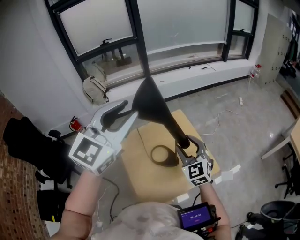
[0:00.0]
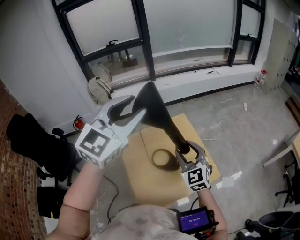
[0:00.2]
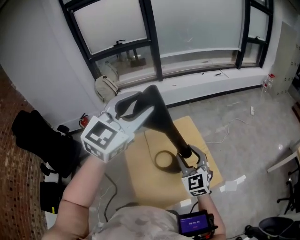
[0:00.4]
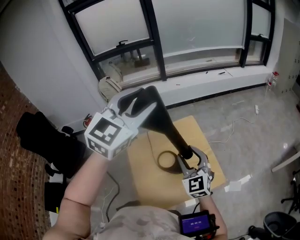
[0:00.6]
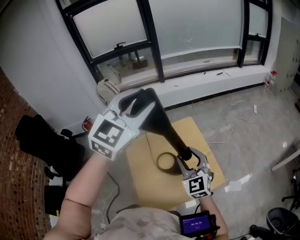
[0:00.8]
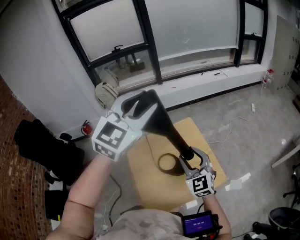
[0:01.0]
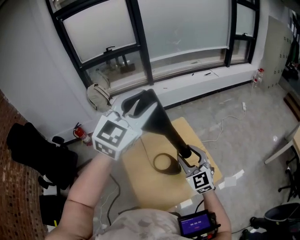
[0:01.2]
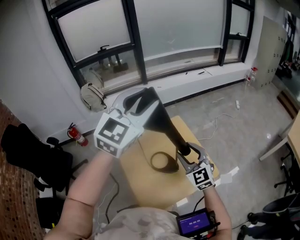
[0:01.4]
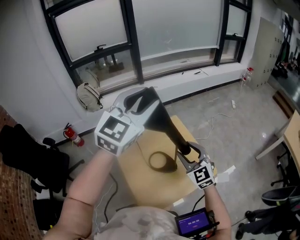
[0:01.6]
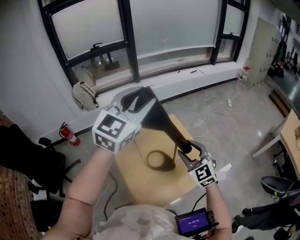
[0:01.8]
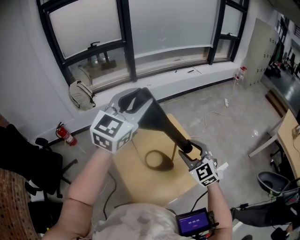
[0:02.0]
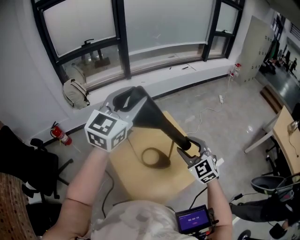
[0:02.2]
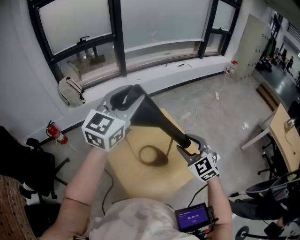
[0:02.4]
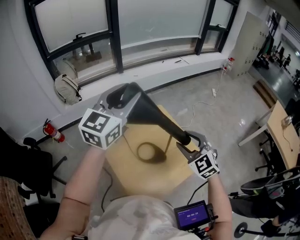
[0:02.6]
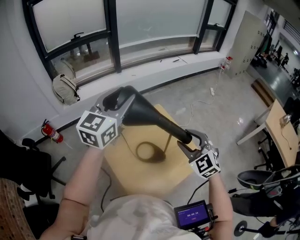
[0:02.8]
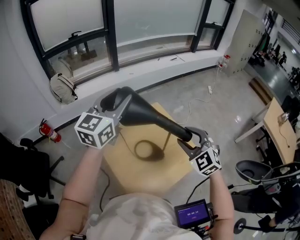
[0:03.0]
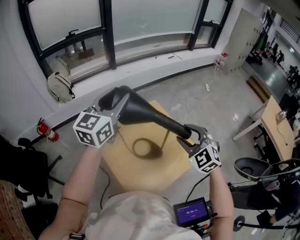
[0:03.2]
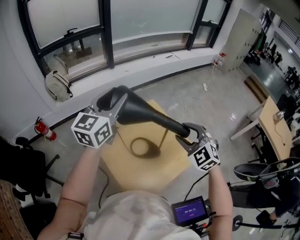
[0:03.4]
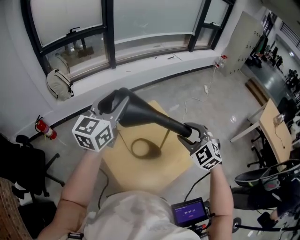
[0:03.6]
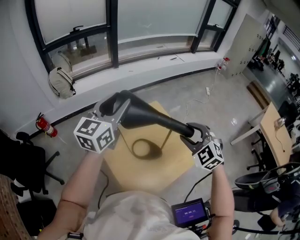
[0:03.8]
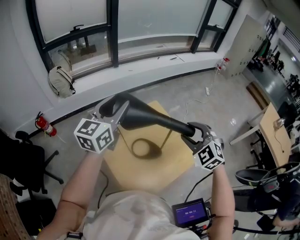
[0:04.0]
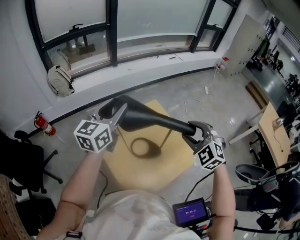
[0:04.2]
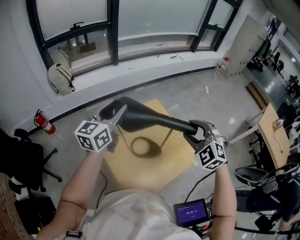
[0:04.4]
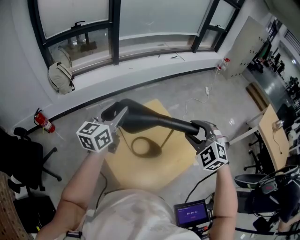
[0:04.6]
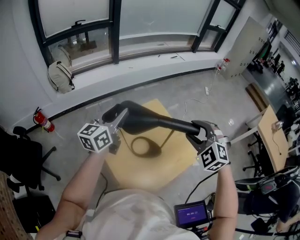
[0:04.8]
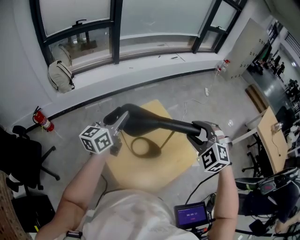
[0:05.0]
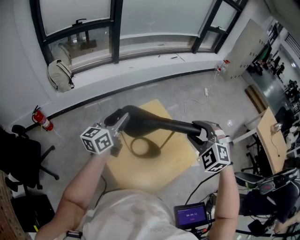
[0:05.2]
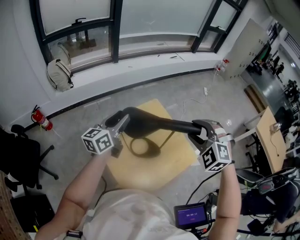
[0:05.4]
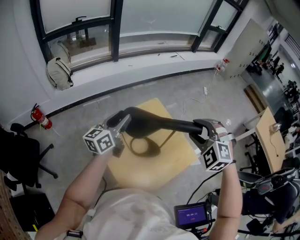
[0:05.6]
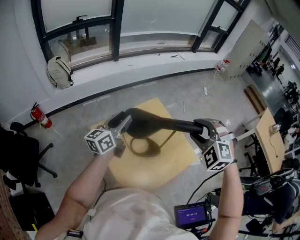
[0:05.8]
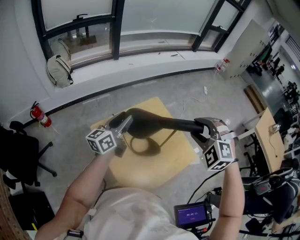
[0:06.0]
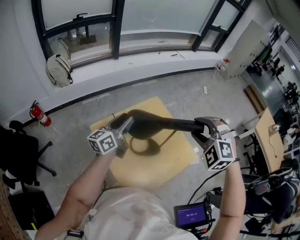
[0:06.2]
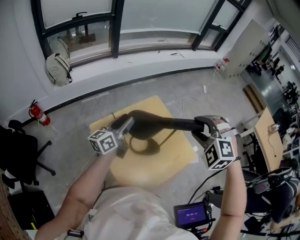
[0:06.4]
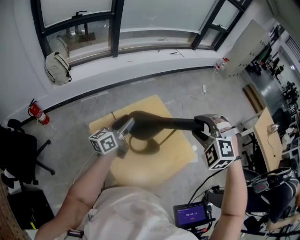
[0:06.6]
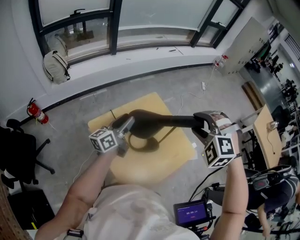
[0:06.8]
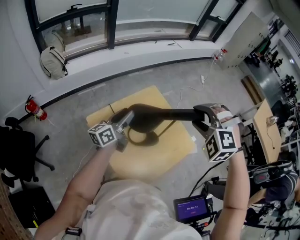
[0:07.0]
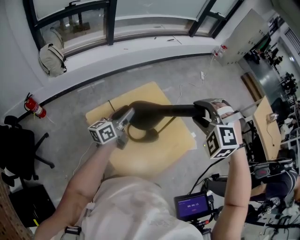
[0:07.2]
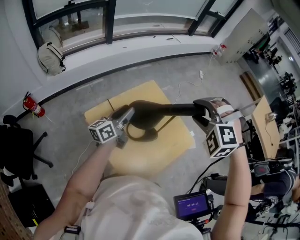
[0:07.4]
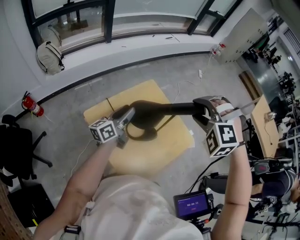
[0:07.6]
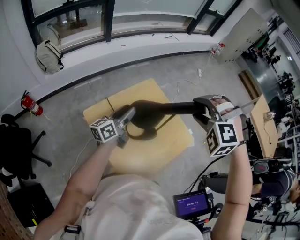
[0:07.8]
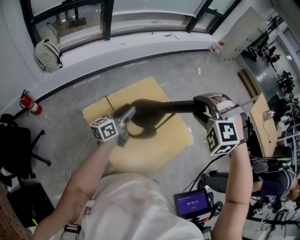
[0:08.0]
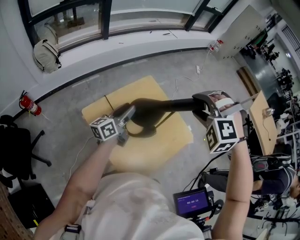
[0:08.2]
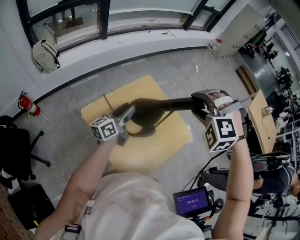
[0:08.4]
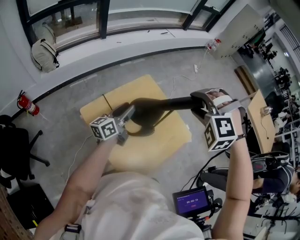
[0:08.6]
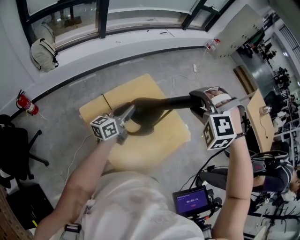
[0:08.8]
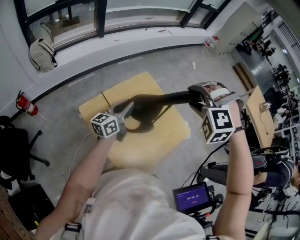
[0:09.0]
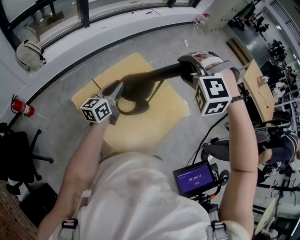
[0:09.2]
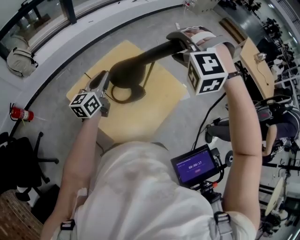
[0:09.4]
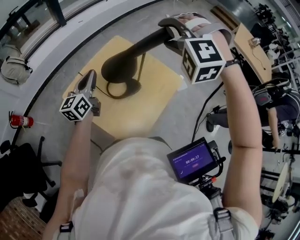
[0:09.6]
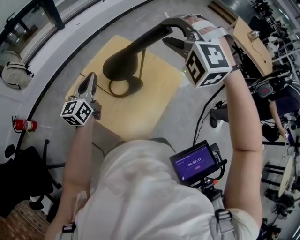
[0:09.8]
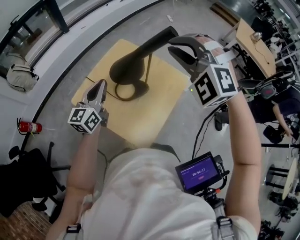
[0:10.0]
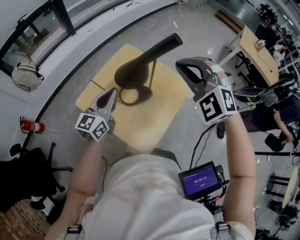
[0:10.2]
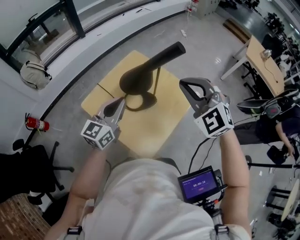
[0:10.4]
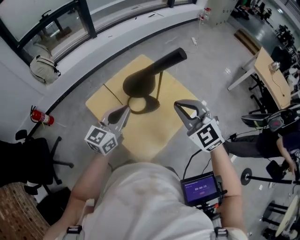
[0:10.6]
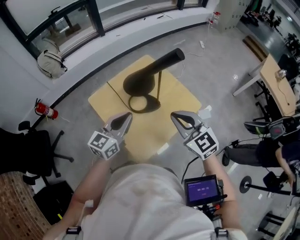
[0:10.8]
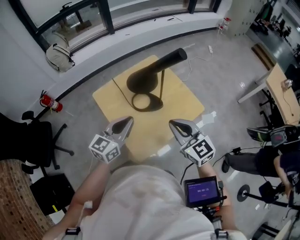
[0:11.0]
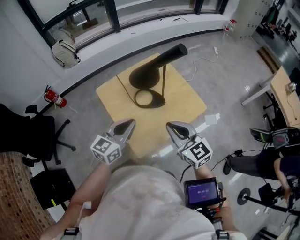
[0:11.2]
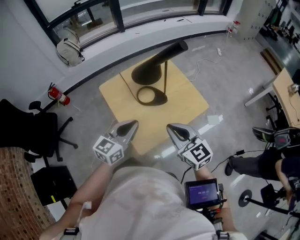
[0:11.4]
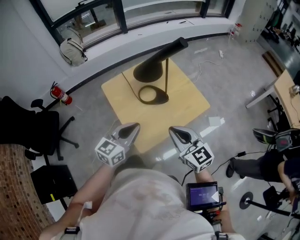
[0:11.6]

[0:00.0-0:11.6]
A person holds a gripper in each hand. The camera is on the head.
0:00.0 to 0:01.4: The left gripper travels forward by some 5 cm.
0:01.4 to 0:02.8: The left gripper travels to the left and downward by about 10 cm, and changes its angle by some 20 degrees.
0:02.8 to 0:04.4: The right gripper rotates roughly 20 degrees; the left gripper travels downward by roughly 10 cm.
0:04.4 to 0:05.8: The left gripper goes roughly 10 cm downward.
0:05.8 to 0:07.2: The left gripper shifts approximately 5 cm downward.
0:07.2 to 0:08.8: The grippers move only a little.
0:08.8 to 0:10.2: The left gripper goes approximately 10 cm backward and upward, swivels approximately 30 degrees, and closes its fingers, while the right gripper shifts about 10 cm backward, rotates roughly 40 degrees, and closes its fingers.
0:10.2 to 0:11.6: The right gripper moves backward and downward, about 25 cm, and rotates around the line of its fingers by approximately 60 degrees, clockwise from behind, while the left gripper shifts roughly 20 cm backward.

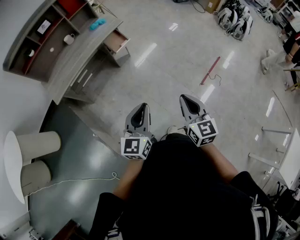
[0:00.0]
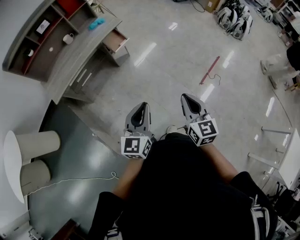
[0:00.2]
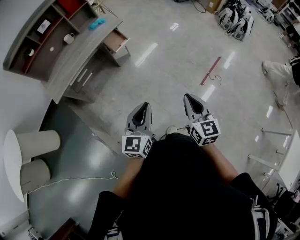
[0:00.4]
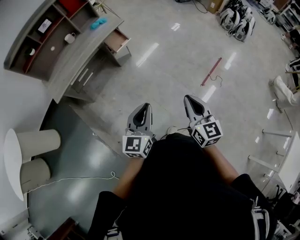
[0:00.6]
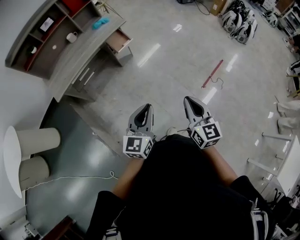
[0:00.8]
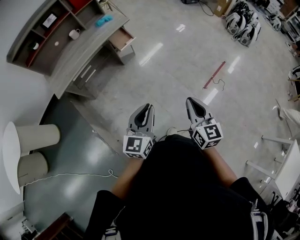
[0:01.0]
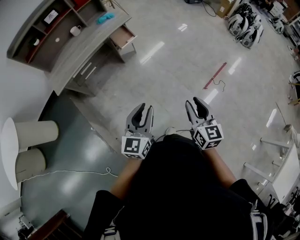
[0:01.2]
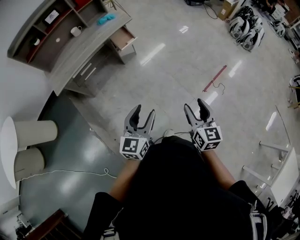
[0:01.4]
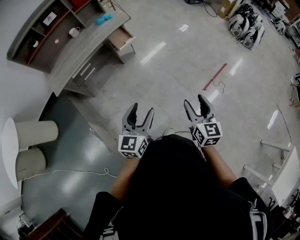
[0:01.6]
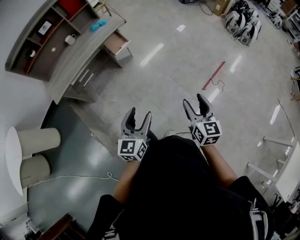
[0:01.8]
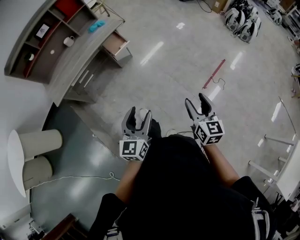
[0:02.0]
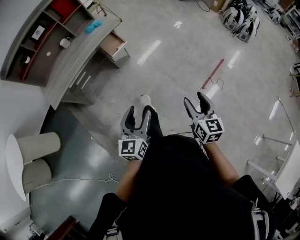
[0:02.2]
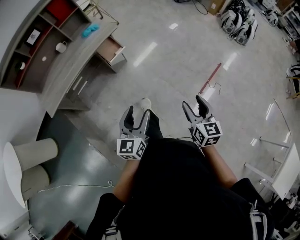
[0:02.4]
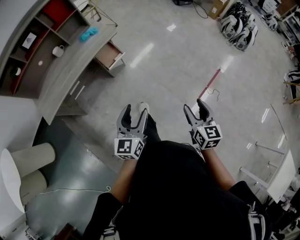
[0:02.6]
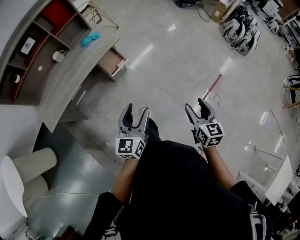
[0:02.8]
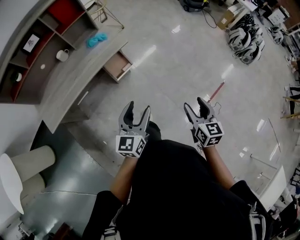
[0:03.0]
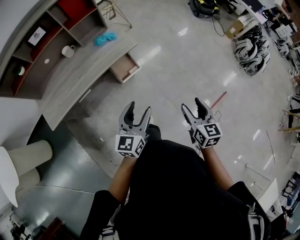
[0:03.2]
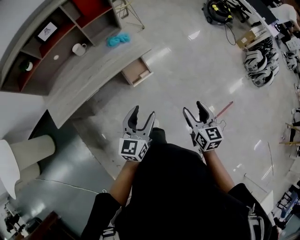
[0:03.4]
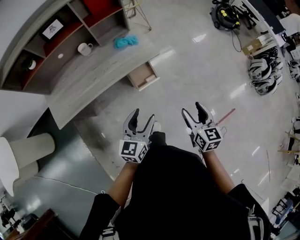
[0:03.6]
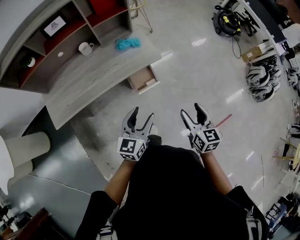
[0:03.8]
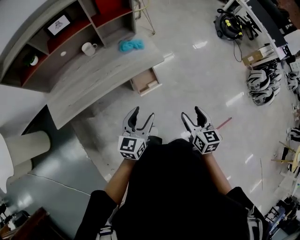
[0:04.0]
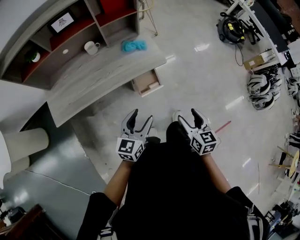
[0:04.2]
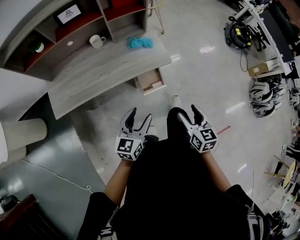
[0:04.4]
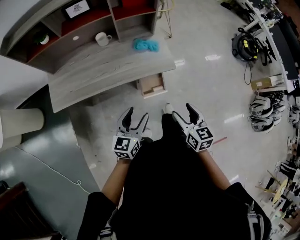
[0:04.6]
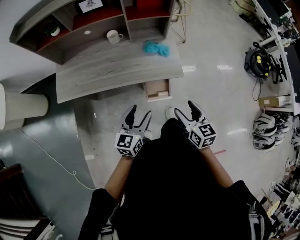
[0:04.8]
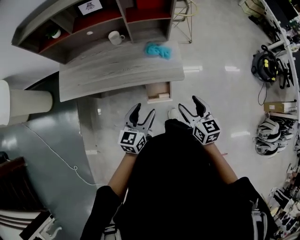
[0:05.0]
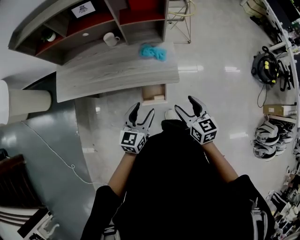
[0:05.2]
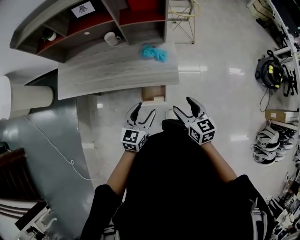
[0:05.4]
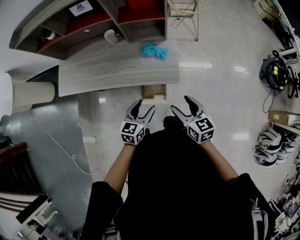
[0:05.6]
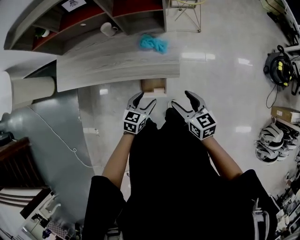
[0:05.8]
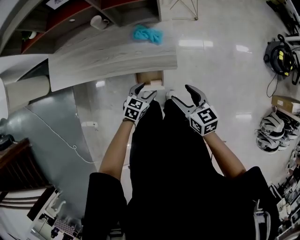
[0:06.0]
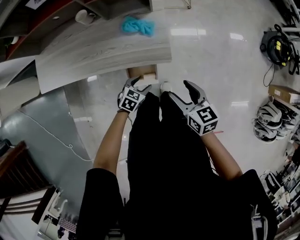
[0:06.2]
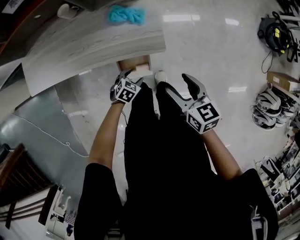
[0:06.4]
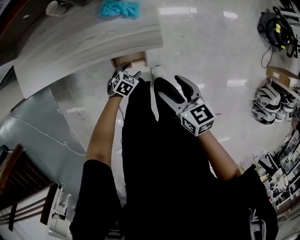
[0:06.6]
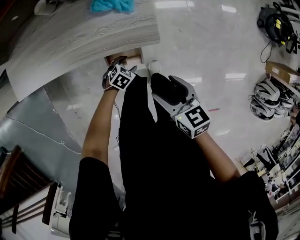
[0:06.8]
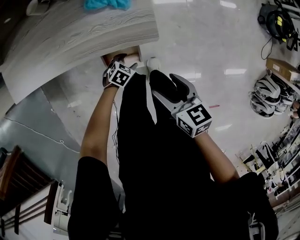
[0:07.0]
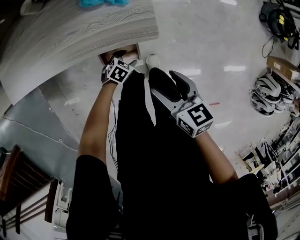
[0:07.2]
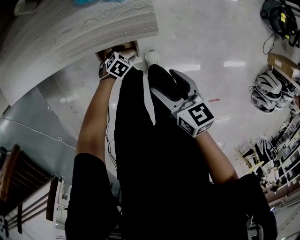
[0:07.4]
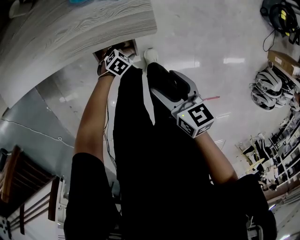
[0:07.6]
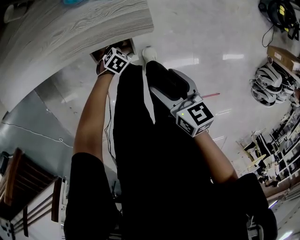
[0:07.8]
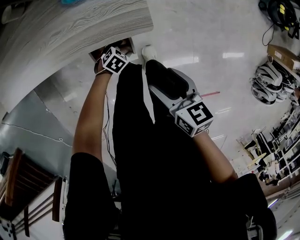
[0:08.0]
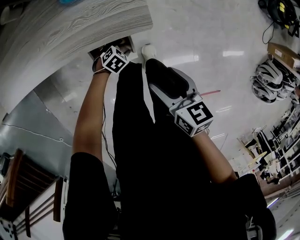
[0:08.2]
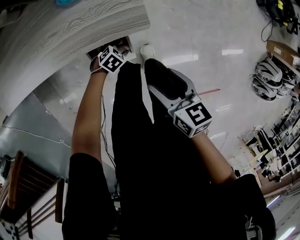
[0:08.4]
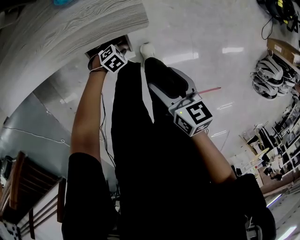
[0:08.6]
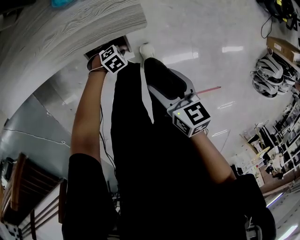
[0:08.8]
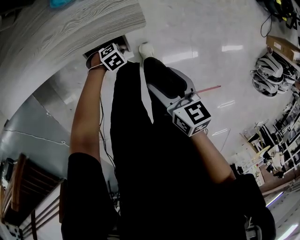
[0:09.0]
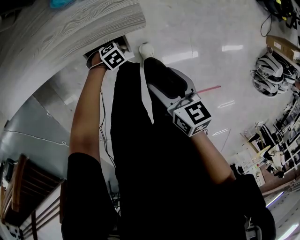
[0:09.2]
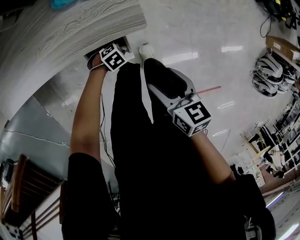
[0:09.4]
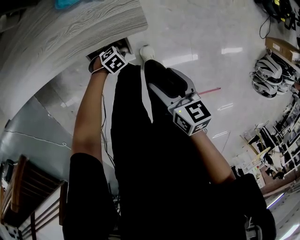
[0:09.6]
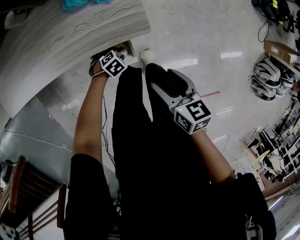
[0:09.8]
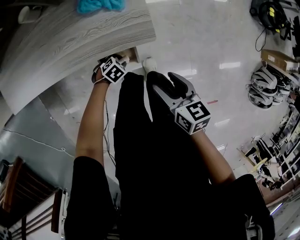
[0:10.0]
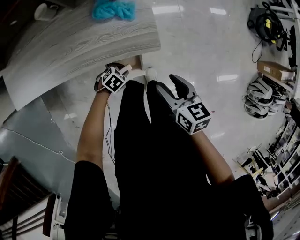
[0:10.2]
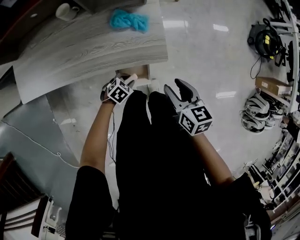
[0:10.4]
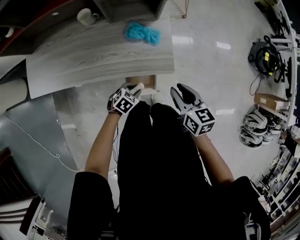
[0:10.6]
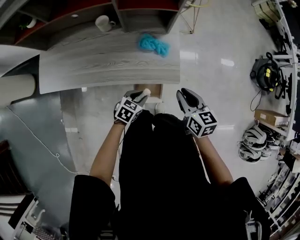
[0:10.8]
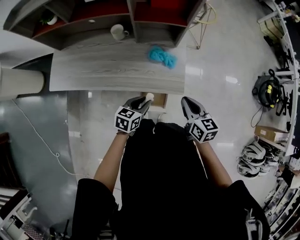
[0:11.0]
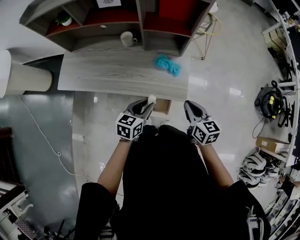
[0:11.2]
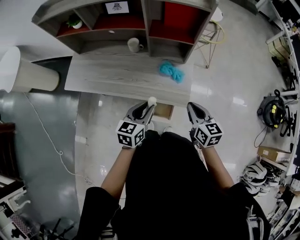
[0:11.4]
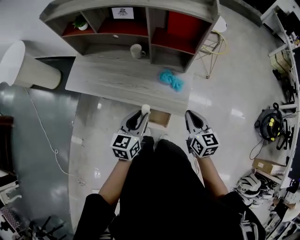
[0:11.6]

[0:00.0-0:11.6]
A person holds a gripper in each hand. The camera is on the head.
0:00.0 to 0:01.4: The left gripper shifts by approximately 5 cm, and opens its fingers; the right gripper goes approximately 5 cm to the right, and opens.
0:01.4 to 0:02.8: The two grippers go about 30 cm forward.
0:02.8 to 0:04.4: The two grippers go approximately 35 cm forward and to the left. The right gripper changes its angle by approximately 30 degrees.
0:04.4 to 0:05.8: The left gripper shifts by approximately 30 cm, and rotates some 20 degrees. The right gripper ends up approximately 25 cm from where it was, and turns by approximately 40 degrees.
0:05.8 to 0:07.2: The left gripper moves downward, approximately 35 cm, and turns by some 40 degrees; the right gripper moves downward, roughly 15 cm.
0:07.2 to 0:08.8: The left gripper swivels approximately 30 degrees, and closes up. Meanwhile the right gripper shifts by approximately 5 cm.
0:08.8 to 0:10.2: Both grippers move upward, some 10 cm.
0:10.2 to 0:11.6: The left gripper moves upward, approximately 50 cm, and angles its fingers upward, by some 40 degrees. The right gripper goes some 25 cm upward, swivels some 30 degrees, and closes up.
